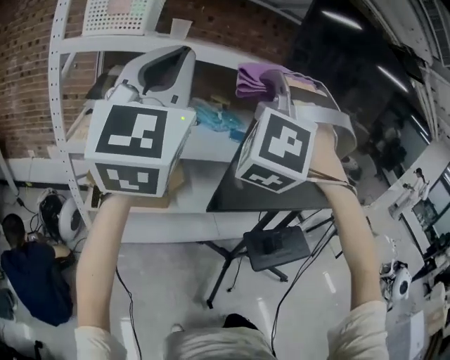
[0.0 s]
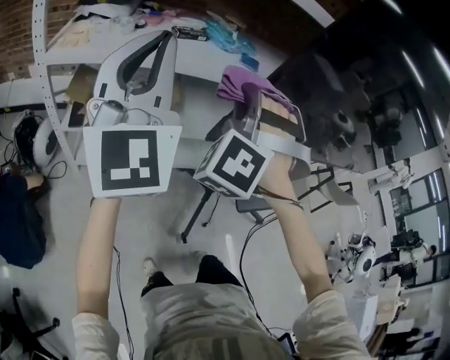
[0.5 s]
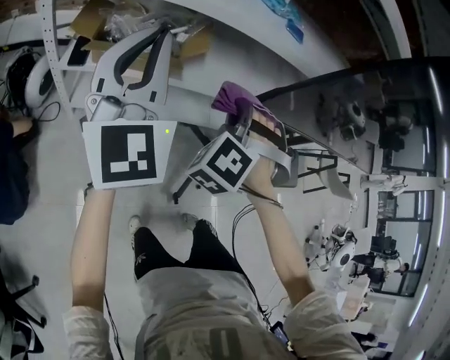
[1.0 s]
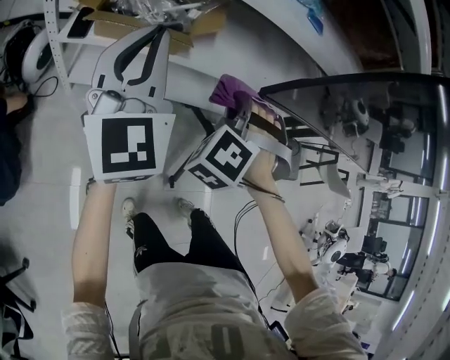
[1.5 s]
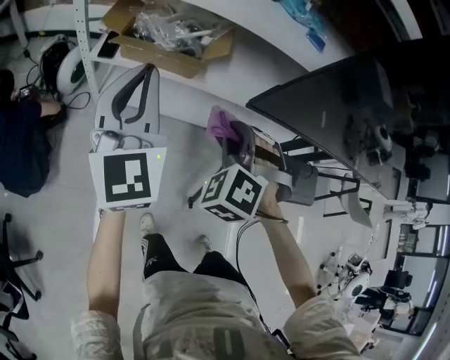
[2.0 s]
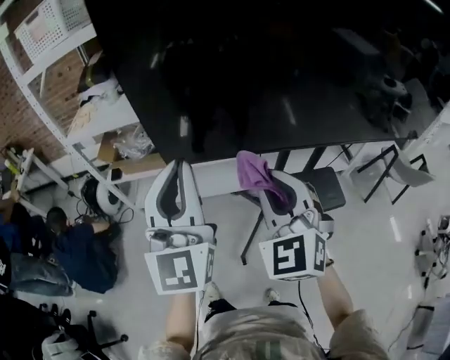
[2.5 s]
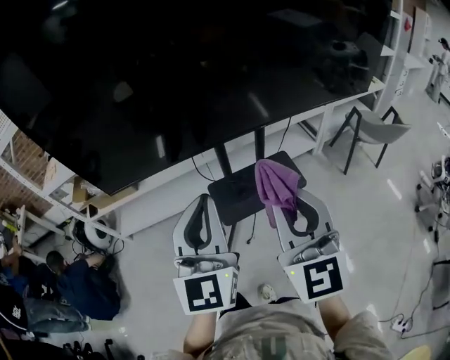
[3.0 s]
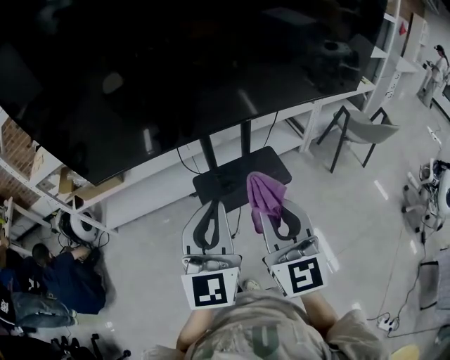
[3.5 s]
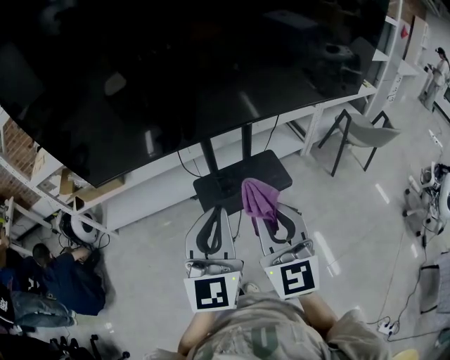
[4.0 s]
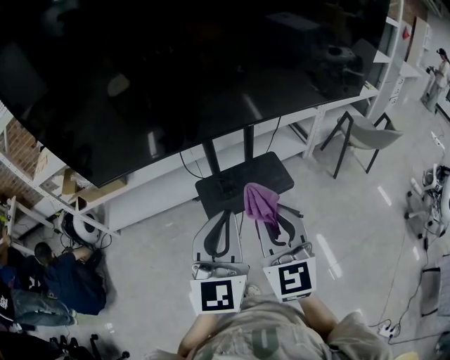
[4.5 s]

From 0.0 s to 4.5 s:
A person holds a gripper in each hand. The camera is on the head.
From 0.0 s to 2.0 s: Both grippers move downward, approximately 40 cm. The left gripper swivels about 30 degrees. Meanwhile the right gripper tilts its fingers some 40 degrees downward.
From 2.0 s to 4.5 s: Both grippers are carried to the right, approximately 60 cm. The right gripper twists roughly 70 degrees clockwise, seen from behind, while the left gripper turns by some 30 degrees.

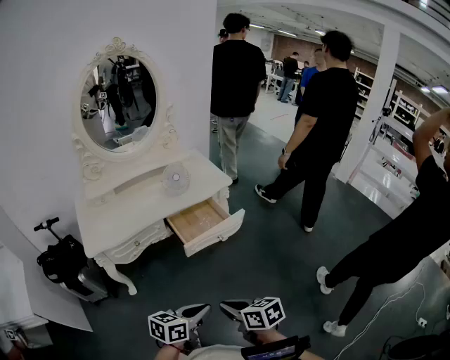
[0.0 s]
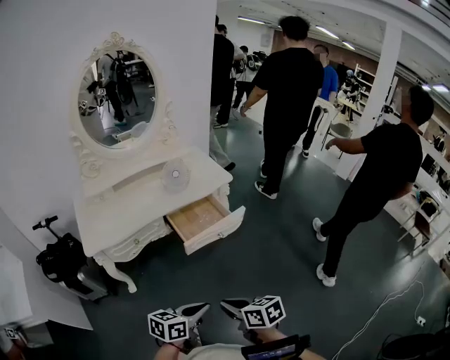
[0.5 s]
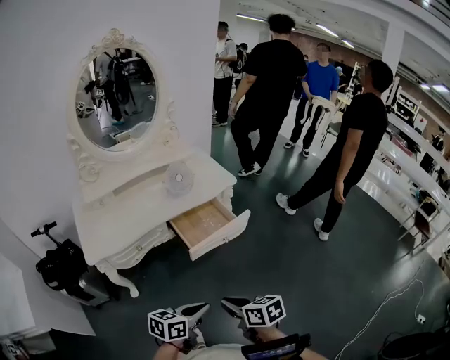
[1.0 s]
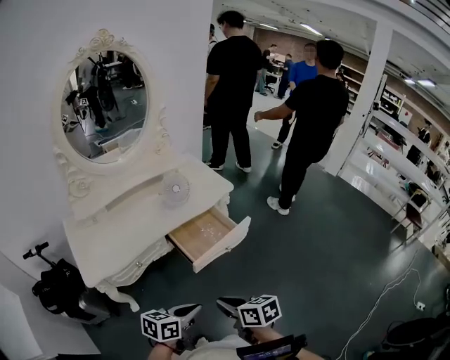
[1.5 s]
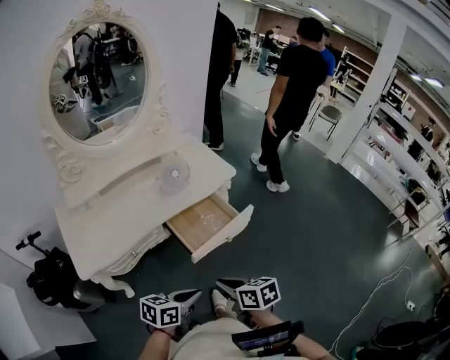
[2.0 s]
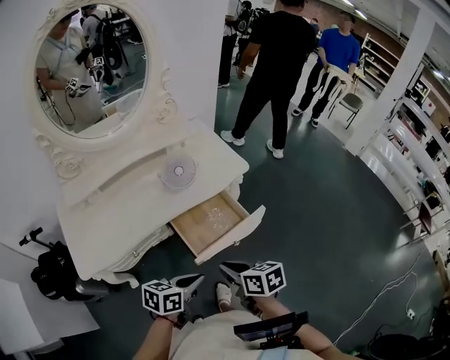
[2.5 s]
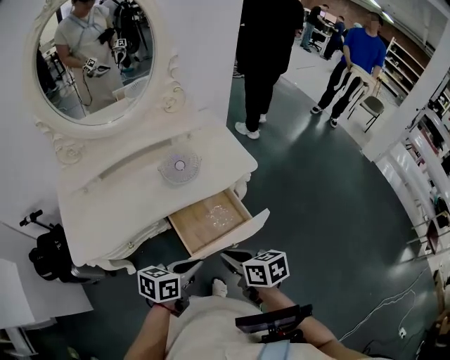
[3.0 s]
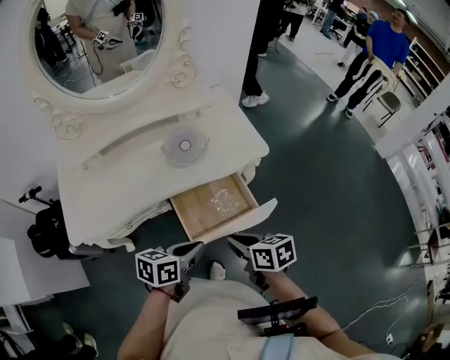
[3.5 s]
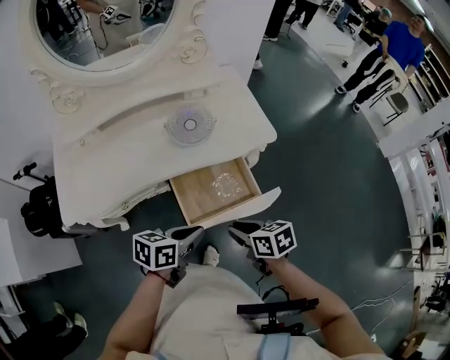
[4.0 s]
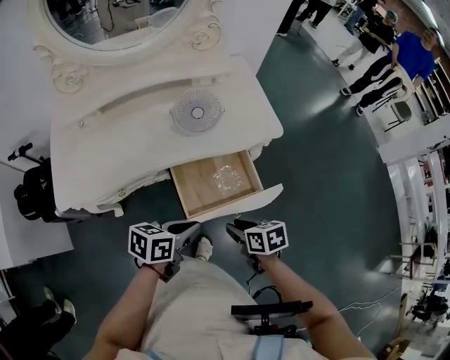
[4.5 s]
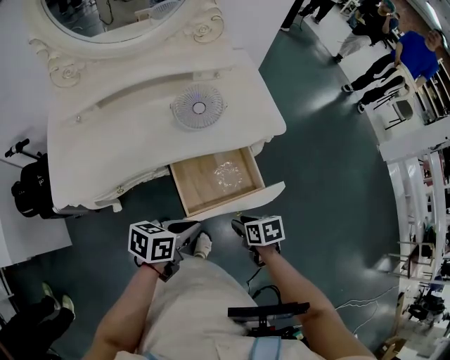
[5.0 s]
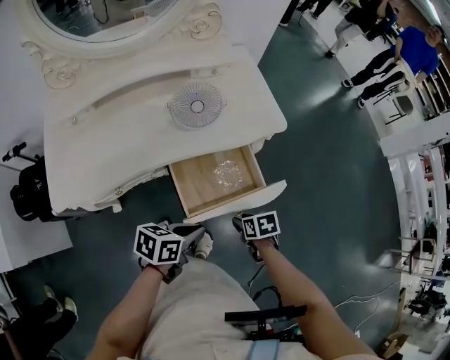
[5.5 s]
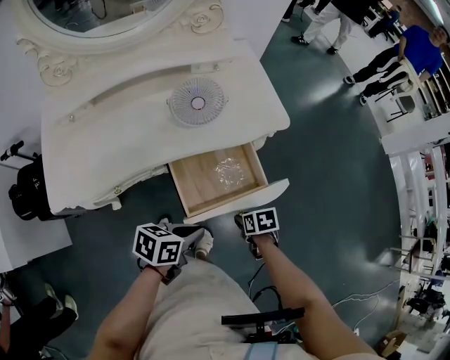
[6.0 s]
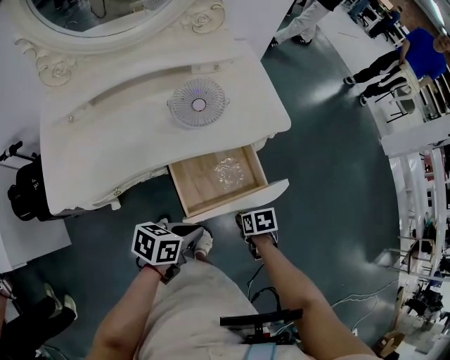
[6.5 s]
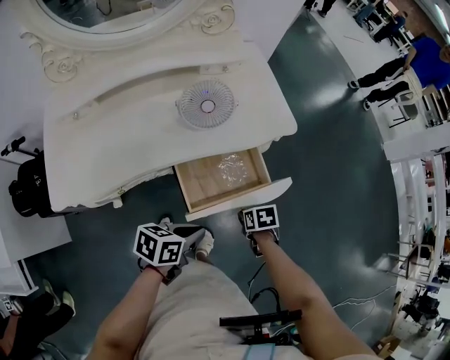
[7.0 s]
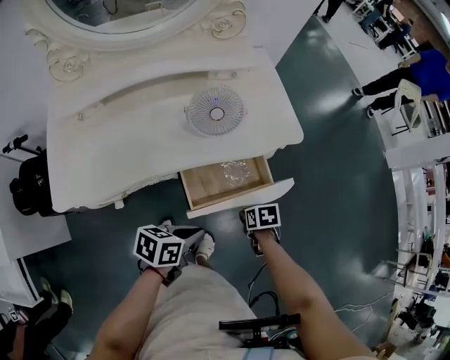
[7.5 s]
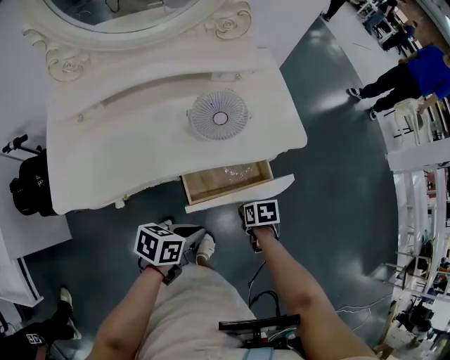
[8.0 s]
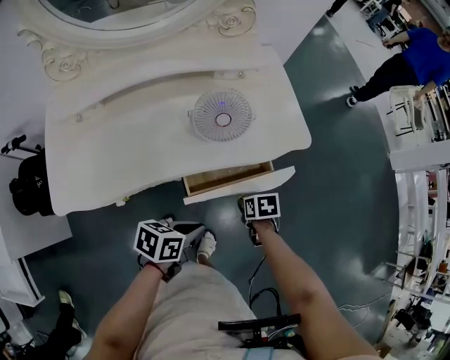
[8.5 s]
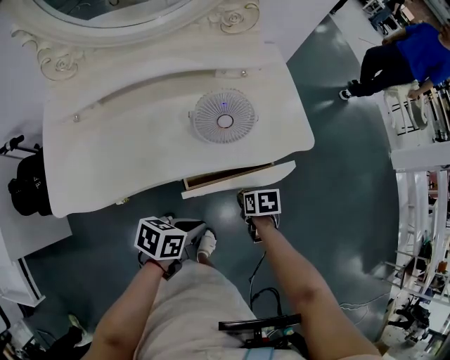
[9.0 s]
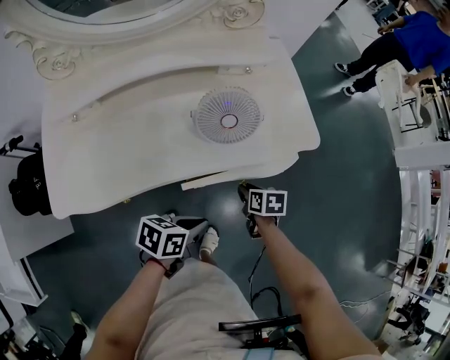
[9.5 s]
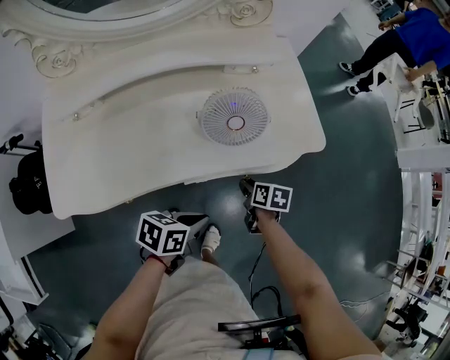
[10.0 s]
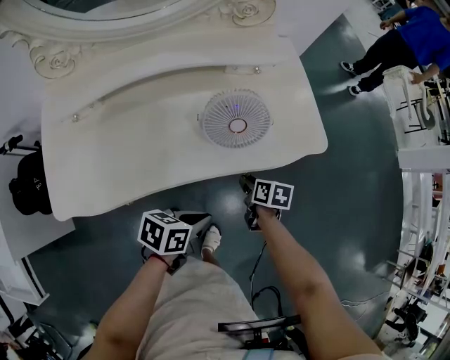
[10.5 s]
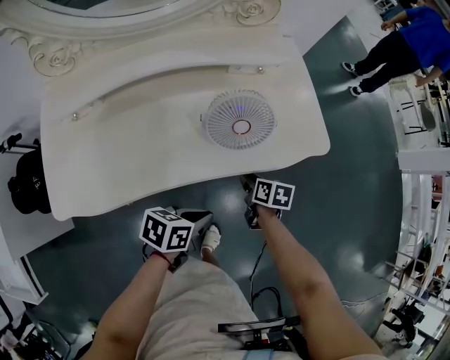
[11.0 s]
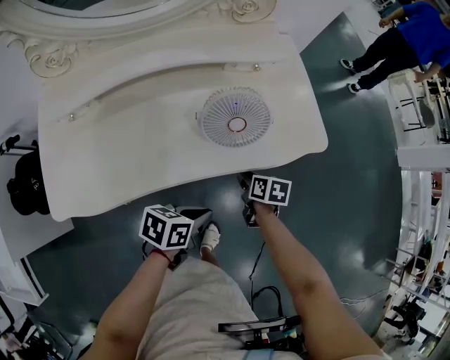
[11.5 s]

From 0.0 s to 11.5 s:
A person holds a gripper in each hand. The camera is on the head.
From 0.0 s to 2.0 s: The two grippers go approximately 20 cm forward and to the left.
From 2.0 s to 4.0 s: The right gripper moves forward and to the right, roughly 20 cm, and rotates about 20 degrees; the left gripper is displaced forward by some 20 cm.
From 4.0 s to 6.0 s: The right gripper travels downward by some 15 cm, and changes its angle by about 30 degrees. The left gripper goes about 5 cm downward.
From 6.0 s to 7.5 s: The right gripper ends up roughly 5 cm from where it was.
From 7.5 s to 9.5 s: The left gripper heads forward, covering some 5 cm, while the right gripper heads forward and to the left, covering roughly 10 cm.
From 9.5 s to 11.5 s: The right gripper ends up approximately 5 cm from where it was.

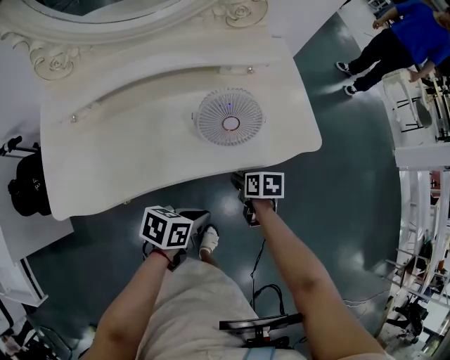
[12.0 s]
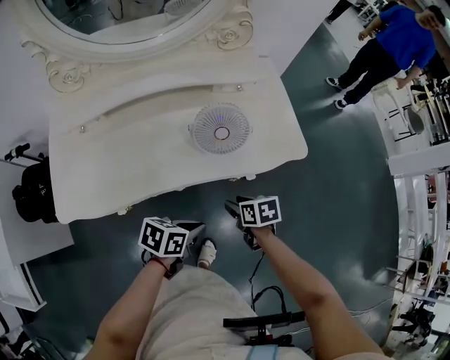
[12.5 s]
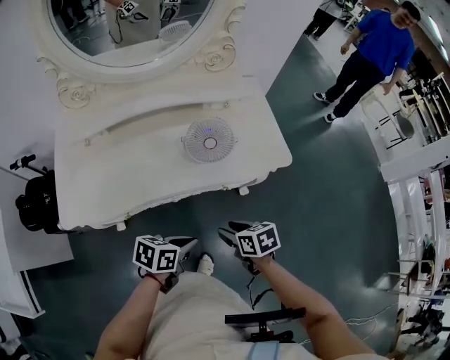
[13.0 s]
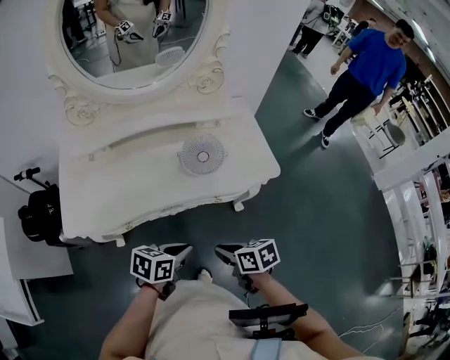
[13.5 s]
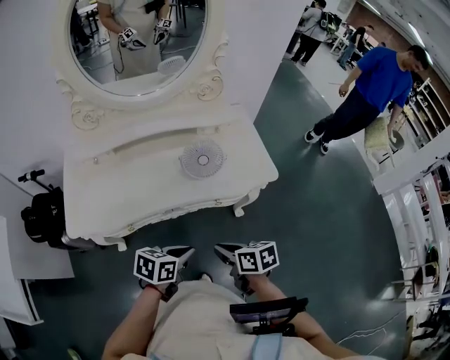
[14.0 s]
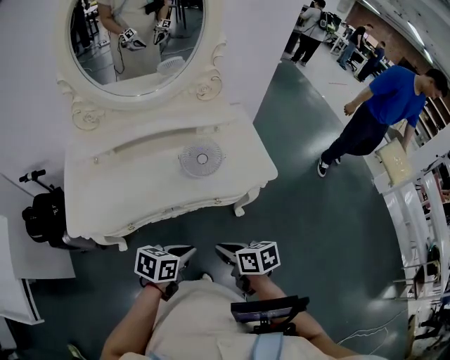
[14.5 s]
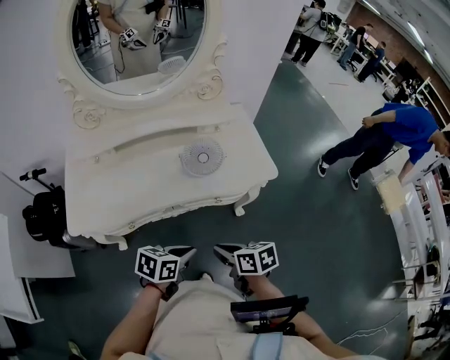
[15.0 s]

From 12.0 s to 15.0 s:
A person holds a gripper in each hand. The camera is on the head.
From 12.0 s to 13.5 s: The left gripper is displaced upward by roughly 10 cm. The right gripper changes place by some 25 cm, changes its angle by roughly 20 degrees, and closes up.
From 13.5 s to 15.0 s: There are only small adjustments of the grippers.

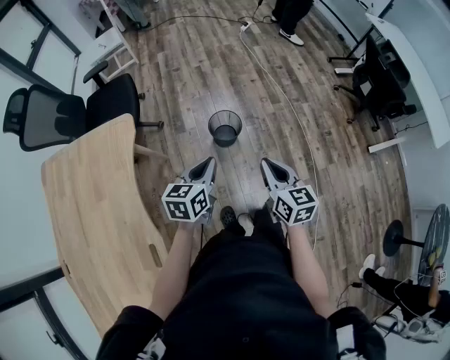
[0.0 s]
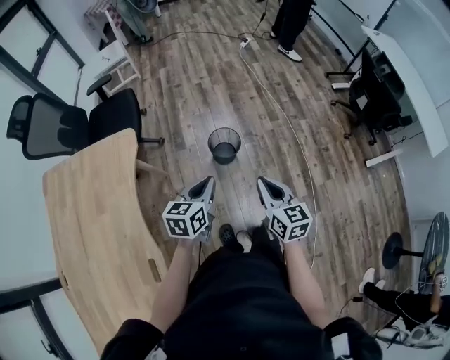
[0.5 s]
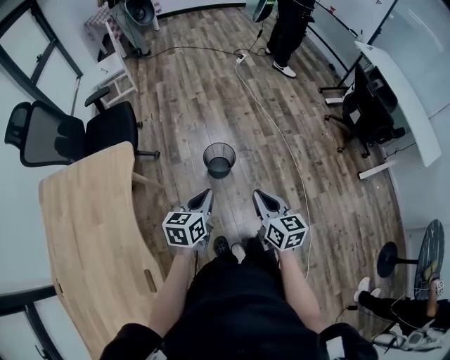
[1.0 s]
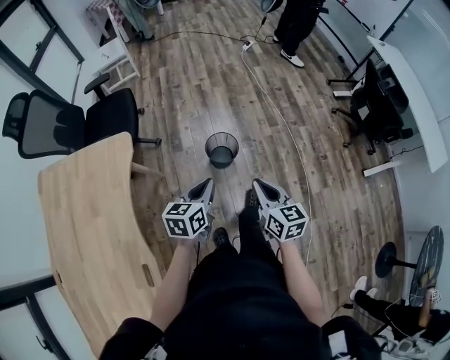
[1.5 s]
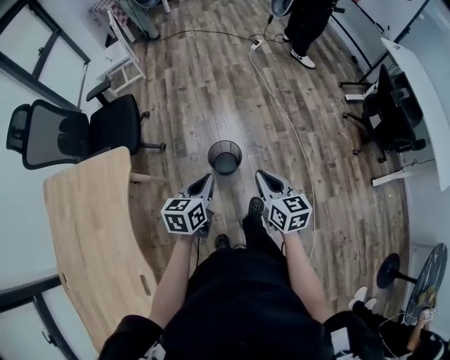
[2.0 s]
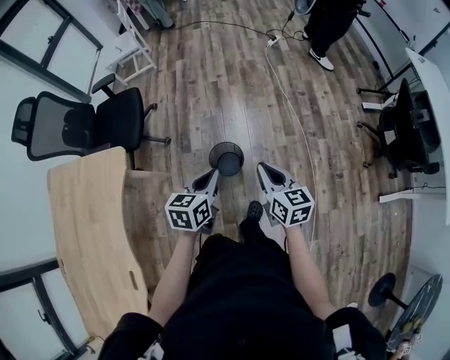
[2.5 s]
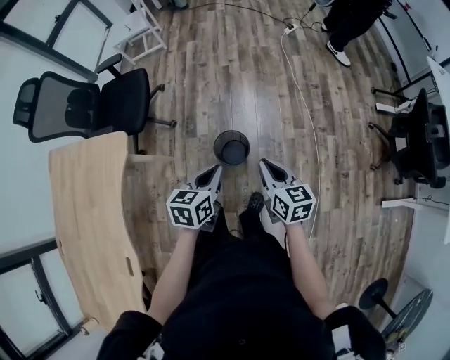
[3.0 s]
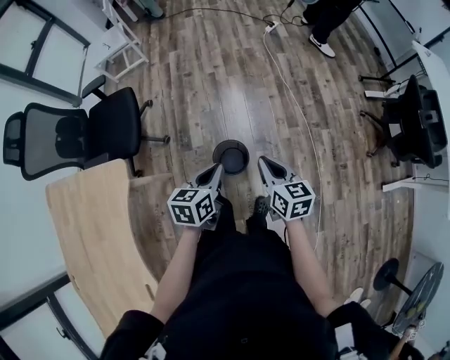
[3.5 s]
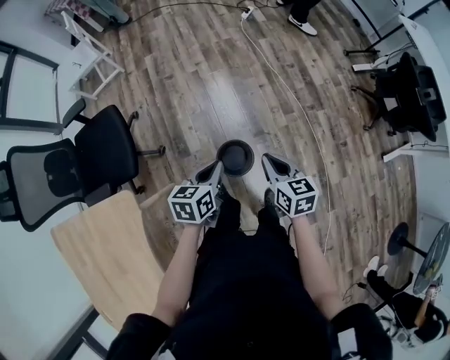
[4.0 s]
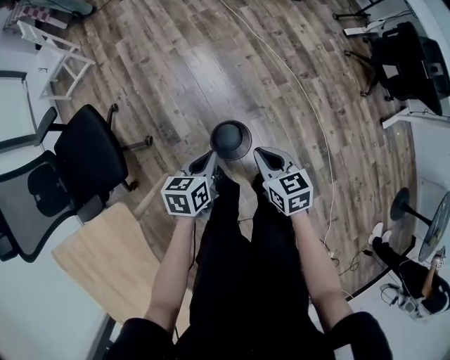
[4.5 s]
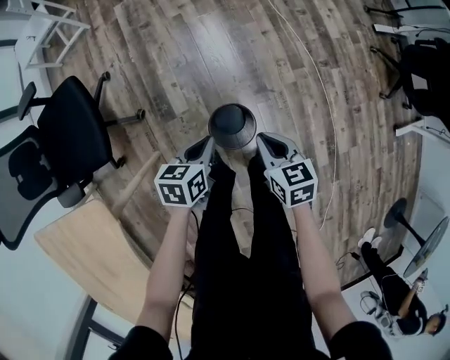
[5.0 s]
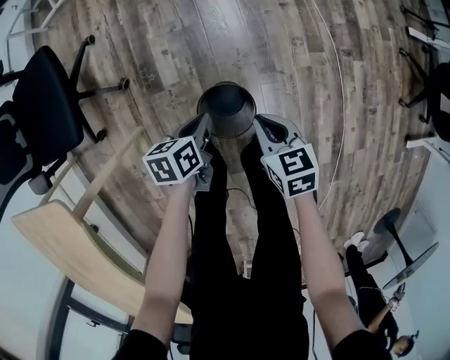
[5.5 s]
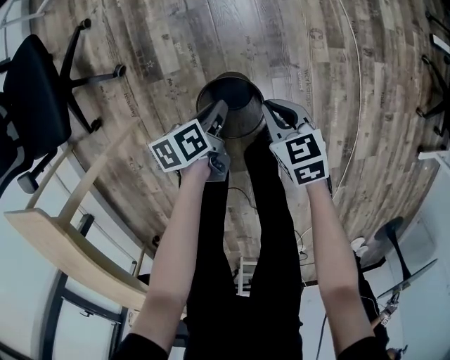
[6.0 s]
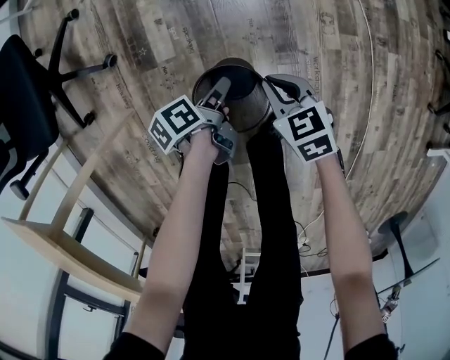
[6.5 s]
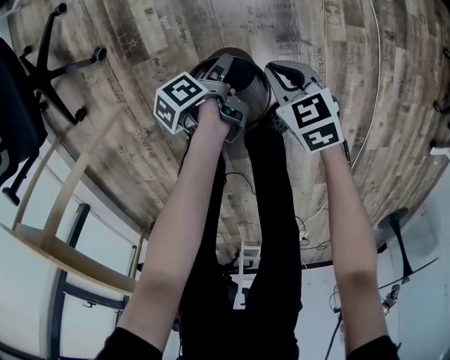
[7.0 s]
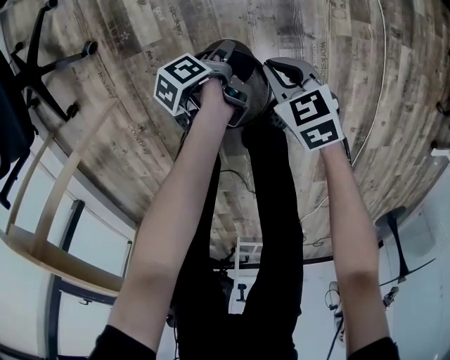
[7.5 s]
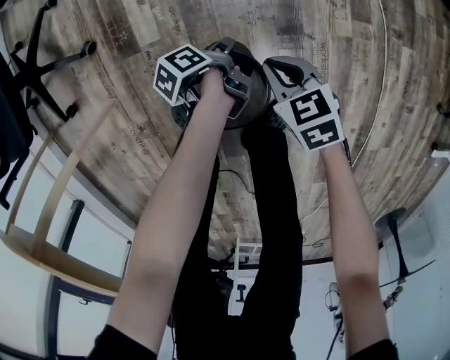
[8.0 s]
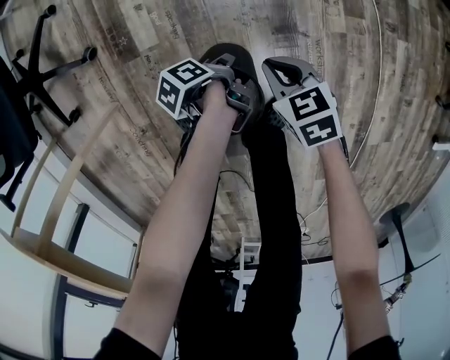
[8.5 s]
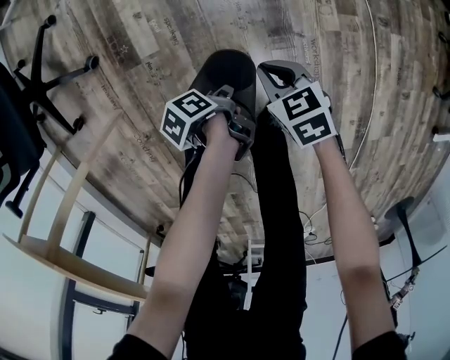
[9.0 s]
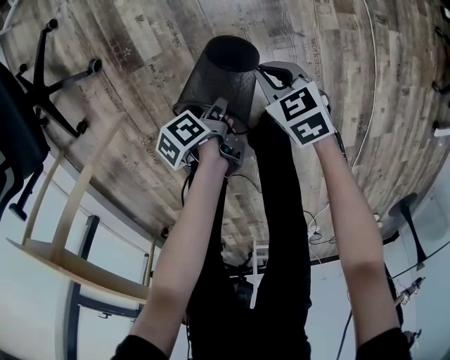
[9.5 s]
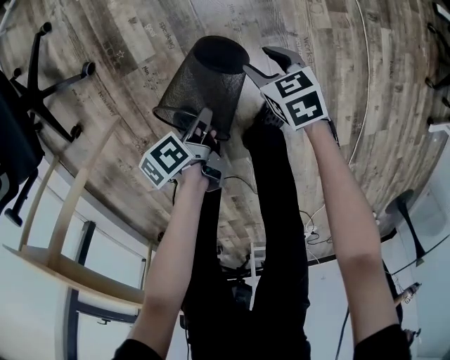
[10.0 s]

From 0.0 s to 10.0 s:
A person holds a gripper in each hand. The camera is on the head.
From 0.0 s to 2.0 s: The right gripper changes place by roughly 15 cm.
From 2.0 s to 4.0 s: The right gripper ends up about 20 cm from where it was.
From 4.0 s to 6.0 s: The right gripper shifts about 40 cm downward, and swivels some 30 degrees.
From 6.0 s to 8.0 s: The right gripper moves downward, about 15 cm.
From 8.0 s to 10.0 s: The right gripper opens.
